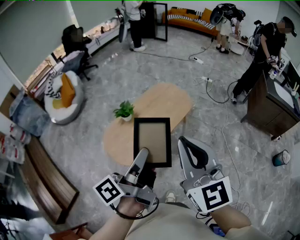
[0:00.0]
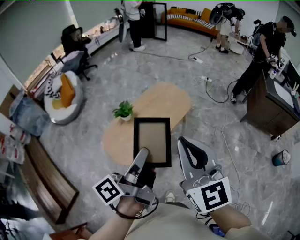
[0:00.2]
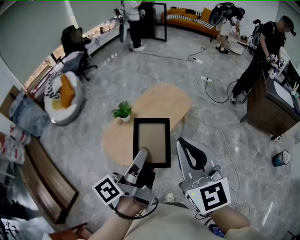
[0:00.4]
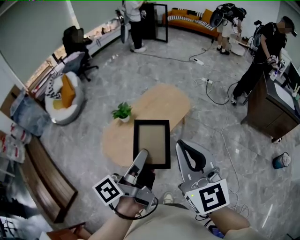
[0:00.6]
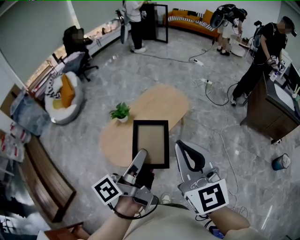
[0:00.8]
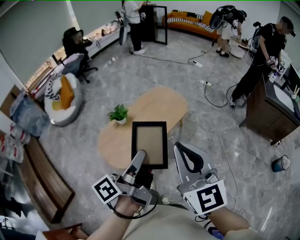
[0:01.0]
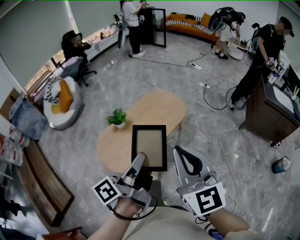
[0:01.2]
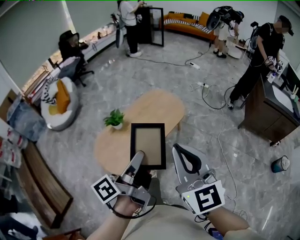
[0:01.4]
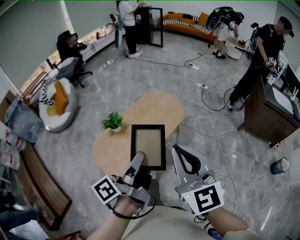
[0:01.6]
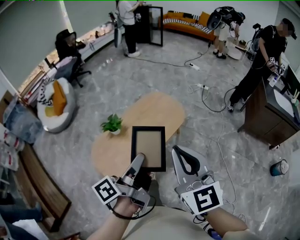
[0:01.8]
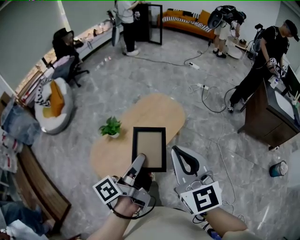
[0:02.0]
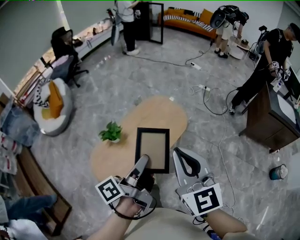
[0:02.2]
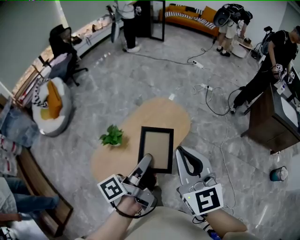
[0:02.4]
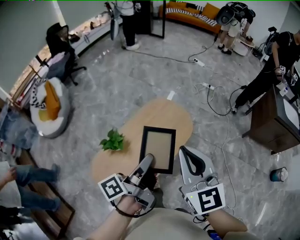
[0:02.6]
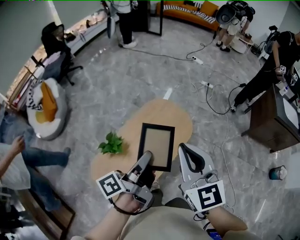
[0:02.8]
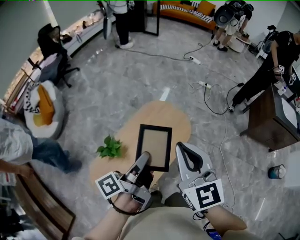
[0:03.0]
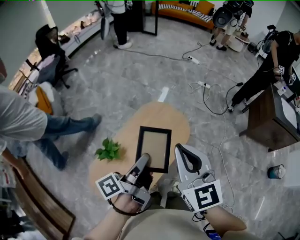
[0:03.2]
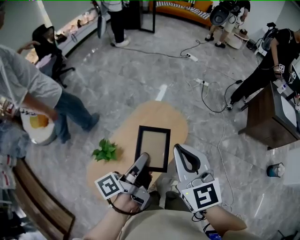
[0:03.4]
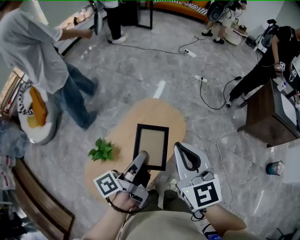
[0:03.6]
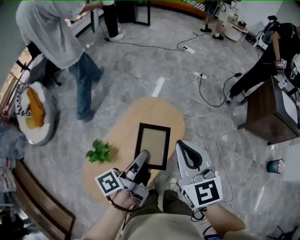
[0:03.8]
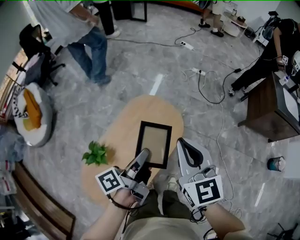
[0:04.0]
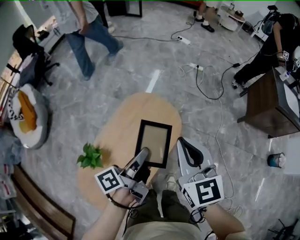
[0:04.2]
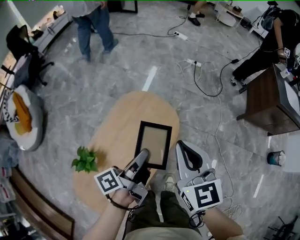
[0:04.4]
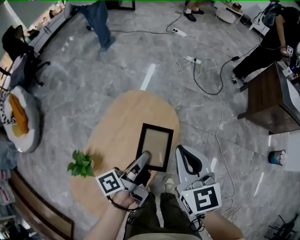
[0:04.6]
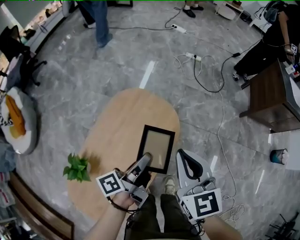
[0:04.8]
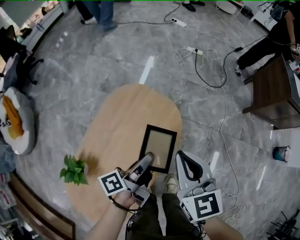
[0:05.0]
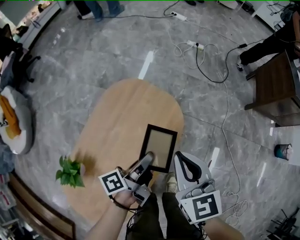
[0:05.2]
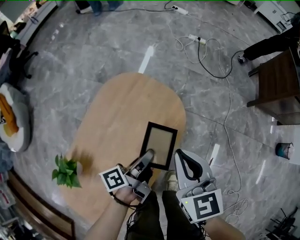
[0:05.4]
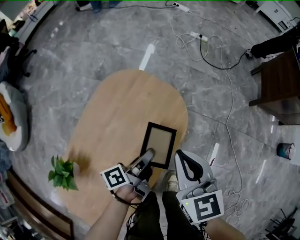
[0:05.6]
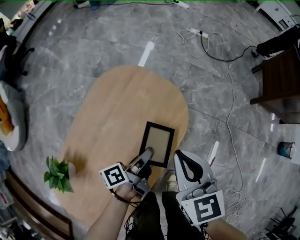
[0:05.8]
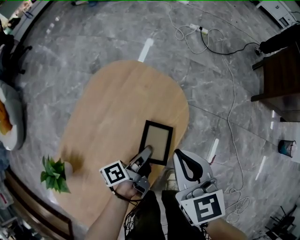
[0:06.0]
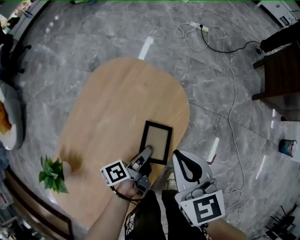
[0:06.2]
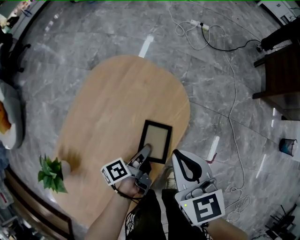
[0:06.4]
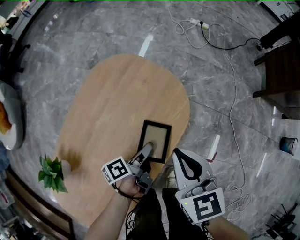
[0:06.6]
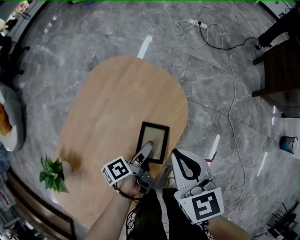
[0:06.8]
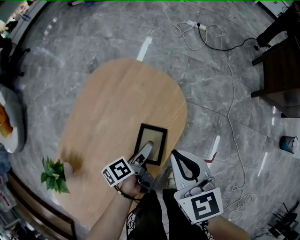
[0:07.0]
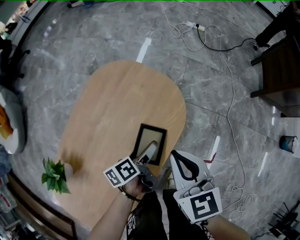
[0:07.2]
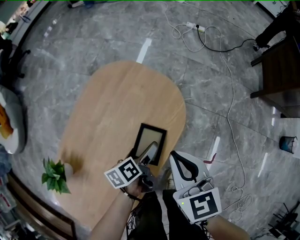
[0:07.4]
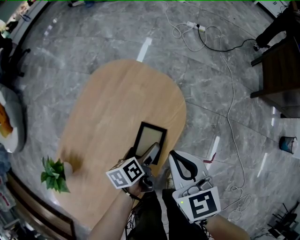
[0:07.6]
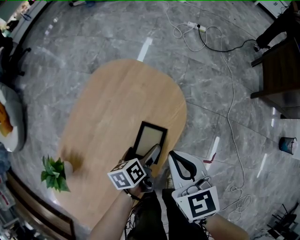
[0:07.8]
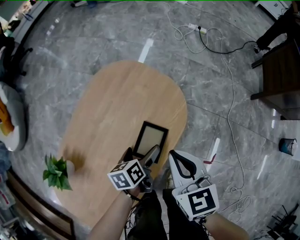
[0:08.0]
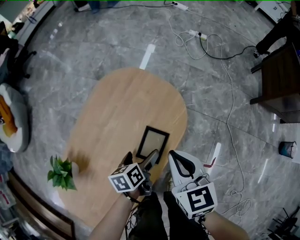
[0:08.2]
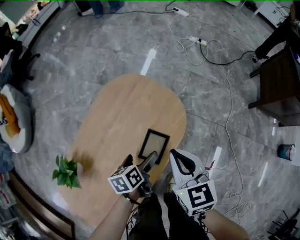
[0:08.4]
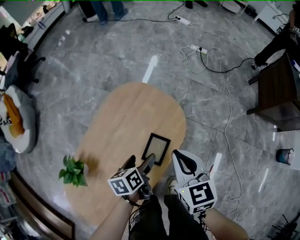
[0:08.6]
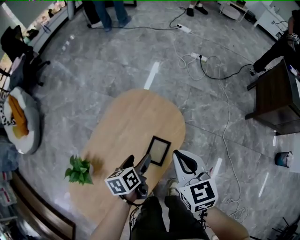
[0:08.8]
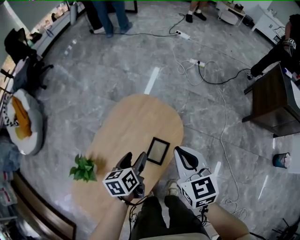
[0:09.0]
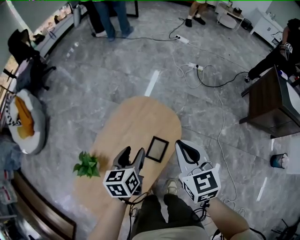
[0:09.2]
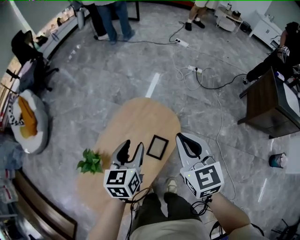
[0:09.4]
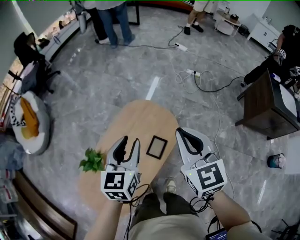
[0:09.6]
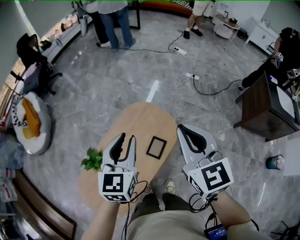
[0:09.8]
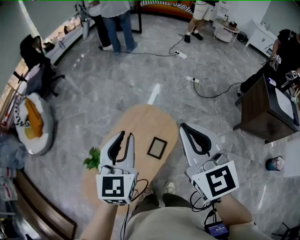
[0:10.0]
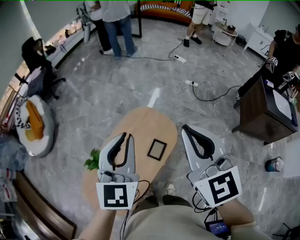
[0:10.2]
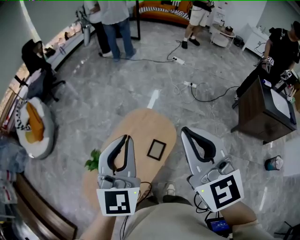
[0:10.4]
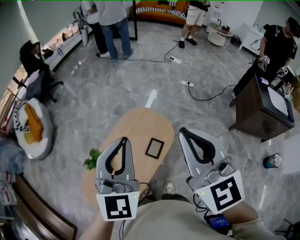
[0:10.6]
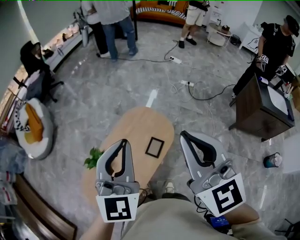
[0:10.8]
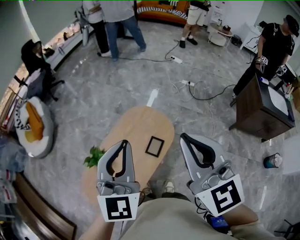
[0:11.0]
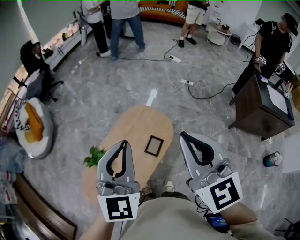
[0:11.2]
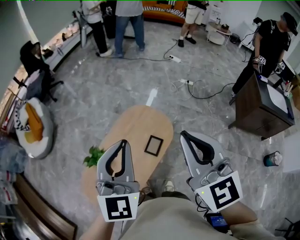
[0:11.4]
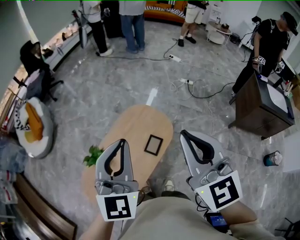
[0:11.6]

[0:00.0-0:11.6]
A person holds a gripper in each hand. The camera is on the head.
0:00.0 to 0:01.4: The grippers both shift to the right by about 5 cm.
0:01.4 to 0:02.8: The grippers both shift forward by some 30 cm.
0:02.8 to 0:04.4: Both grippers travel together forward, downward and to the right, roughly 25 cm.
0:04.4 to 0:05.8: The grippers both shift downward by roughly 30 cm.
0:05.8 to 0:07.2: The left gripper shifts about 5 cm downward, turns by approximately 20 degrees, and opens up.
0:07.2 to 0:08.8: The right gripper heads upward, covering roughly 10 cm. The left gripper heads upward and to the left, covering approximately 20 cm, and rotates some 20 degrees.
0:08.8 to 0:10.2: Both grippers move upward, approximately 40 cm. The left gripper angles its fingers upward, by about 40 degrees, and closes its fingers. The right gripper rotates some 30 degrees.
0:10.2 to 0:11.6: Both grippers travel together backward, about 5 cm.

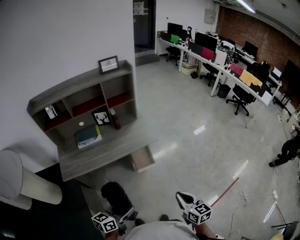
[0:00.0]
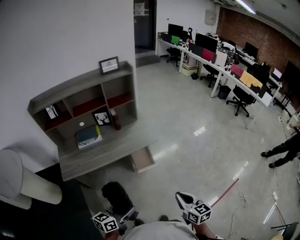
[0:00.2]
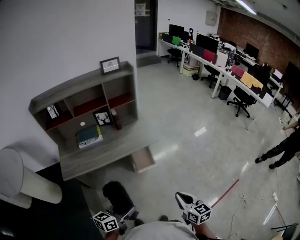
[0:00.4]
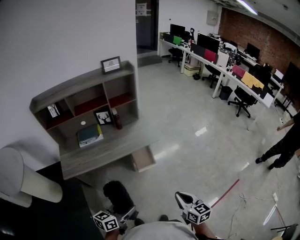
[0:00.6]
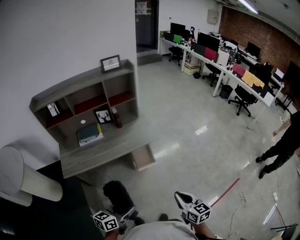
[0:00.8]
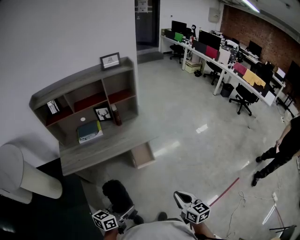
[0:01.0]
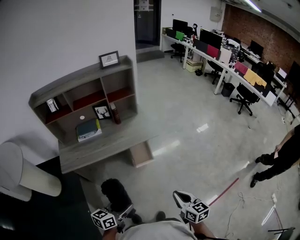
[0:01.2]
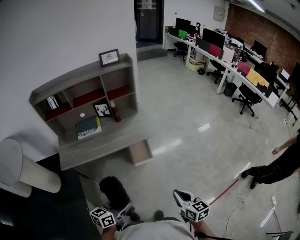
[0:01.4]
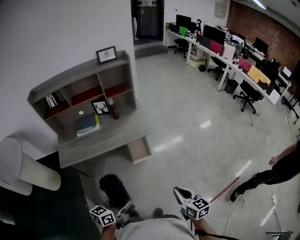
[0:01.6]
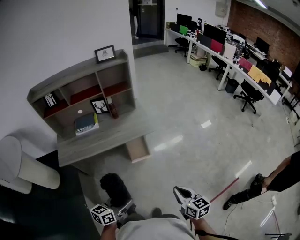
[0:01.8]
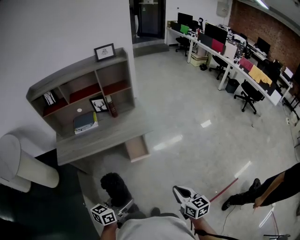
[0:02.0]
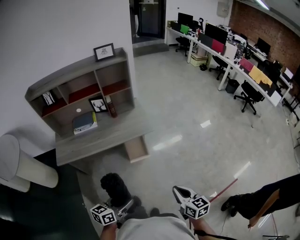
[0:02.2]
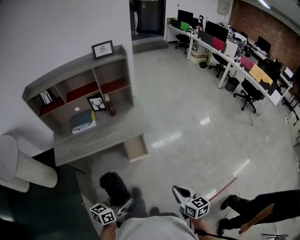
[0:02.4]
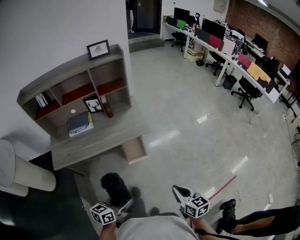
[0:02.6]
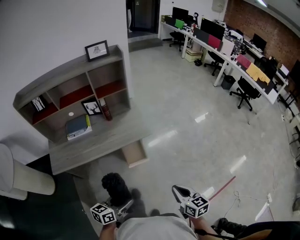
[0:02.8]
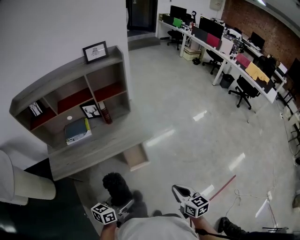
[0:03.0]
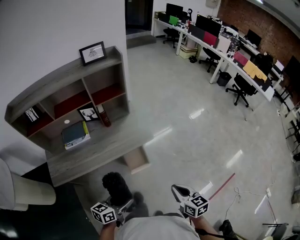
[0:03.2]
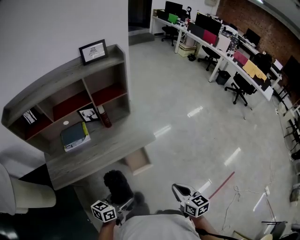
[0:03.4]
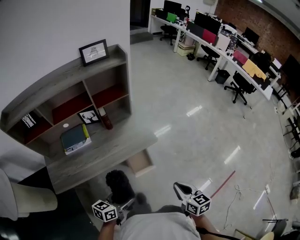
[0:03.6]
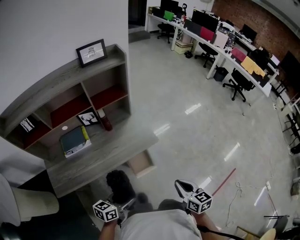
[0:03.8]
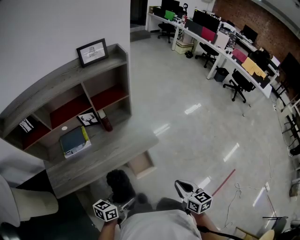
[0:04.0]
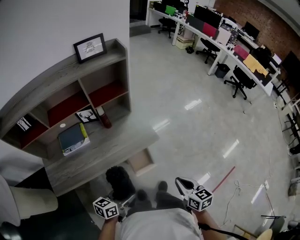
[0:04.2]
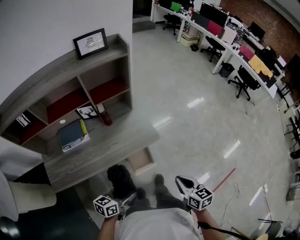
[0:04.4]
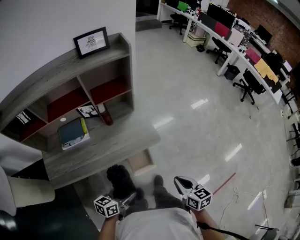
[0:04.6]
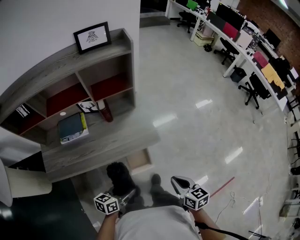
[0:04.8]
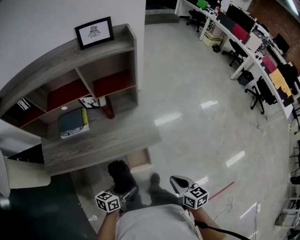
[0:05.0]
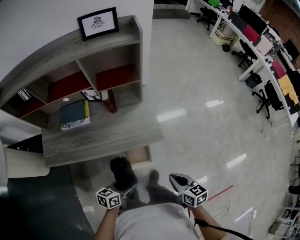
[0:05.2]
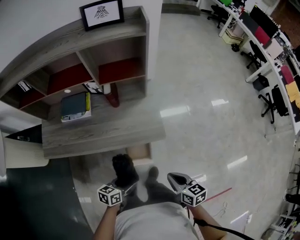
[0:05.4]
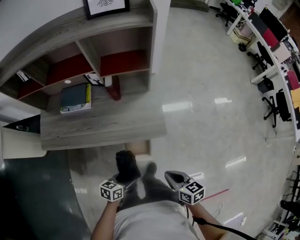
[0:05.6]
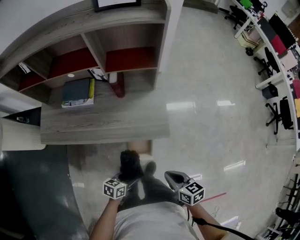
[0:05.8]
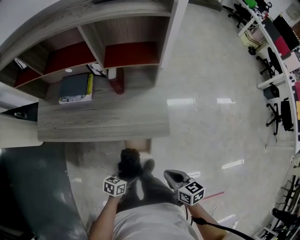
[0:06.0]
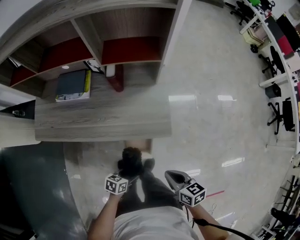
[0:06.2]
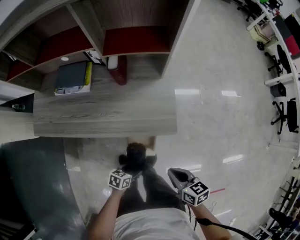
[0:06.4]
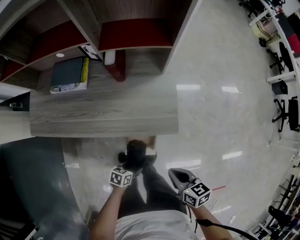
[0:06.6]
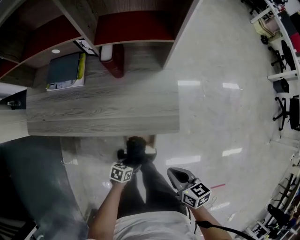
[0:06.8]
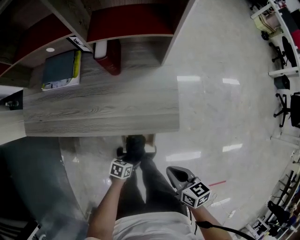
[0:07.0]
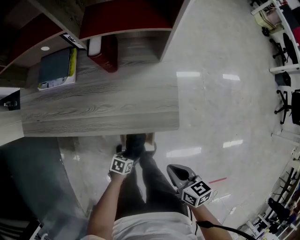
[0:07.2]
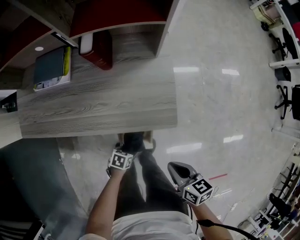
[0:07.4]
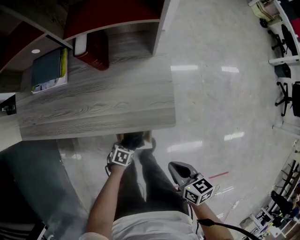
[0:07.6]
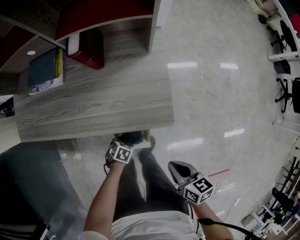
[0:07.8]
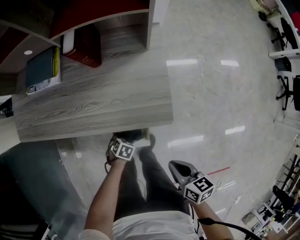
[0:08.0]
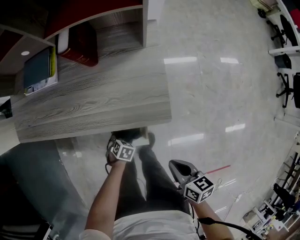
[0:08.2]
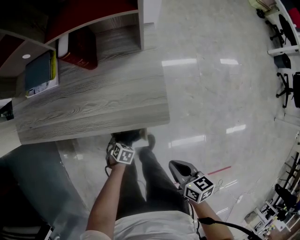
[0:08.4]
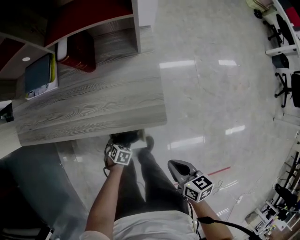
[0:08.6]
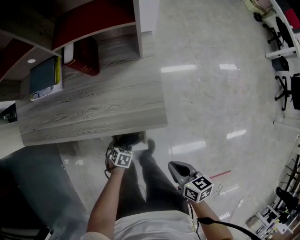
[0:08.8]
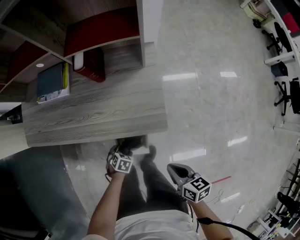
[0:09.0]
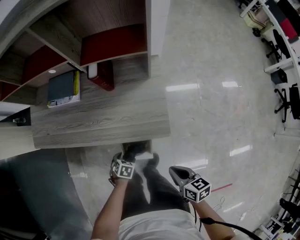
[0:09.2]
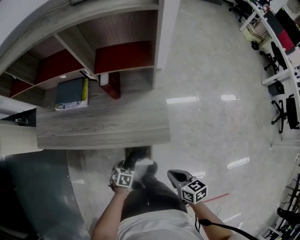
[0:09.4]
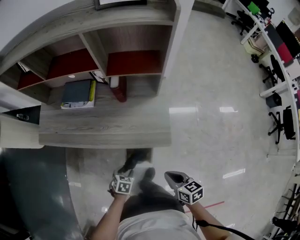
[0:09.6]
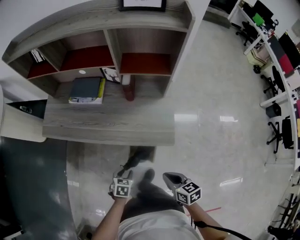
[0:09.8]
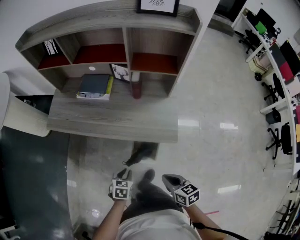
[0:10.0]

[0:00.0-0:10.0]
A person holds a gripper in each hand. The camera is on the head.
0:00.0 to 0:01.4: The right gripper moves about 5 cm. Meanwhile the left gripper travels to the right by some 5 cm.
0:01.4 to 0:02.8: The two grippers go approximately 10 cm forward.
0:02.8 to 0:04.2: The two grippers go some 20 cm forward and to the left.
0:04.2 to 0:05.8: The right gripper ends up some 20 cm from where it was, and changes its angle by about 40 degrees; the left gripper shifts some 20 cm downward, and turns by roughly 30 degrees.
0:05.8 to 0:07.2: The left gripper heads downward, covering about 25 cm, and swivels approximately 20 degrees. The right gripper moves downward, about 15 cm.
0:07.2 to 0:08.6: The right gripper moves about 5 cm. Meanwhile the left gripper shifts by approximately 10 cm, and changes its angle by about 30 degrees.
0:08.6 to 0:10.0: The left gripper goes roughly 30 cm upward, rotates roughly 40 degrees, and closes. Meanwhile the right gripper moves upward, some 15 cm, and rotates some 20 degrees.

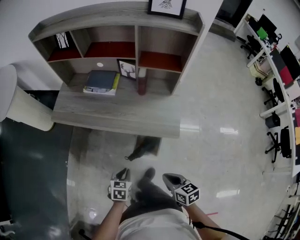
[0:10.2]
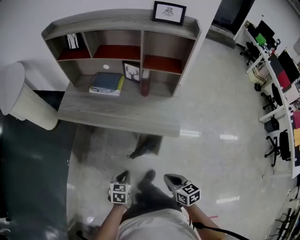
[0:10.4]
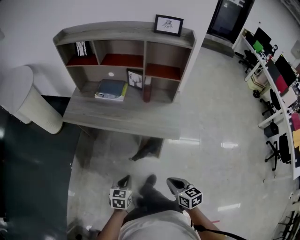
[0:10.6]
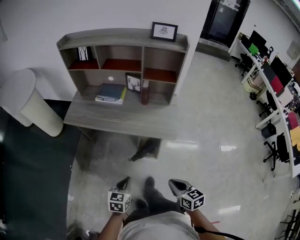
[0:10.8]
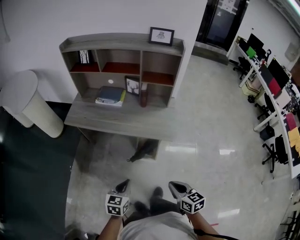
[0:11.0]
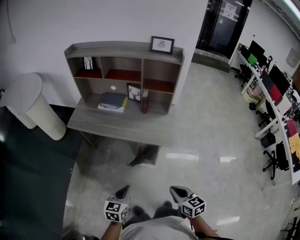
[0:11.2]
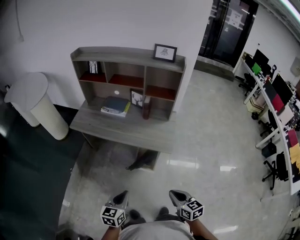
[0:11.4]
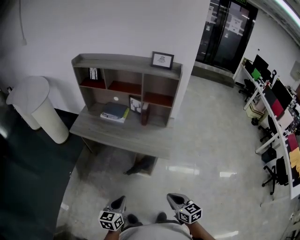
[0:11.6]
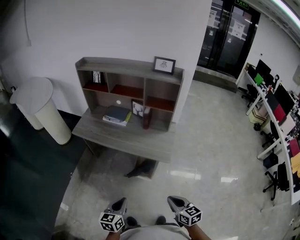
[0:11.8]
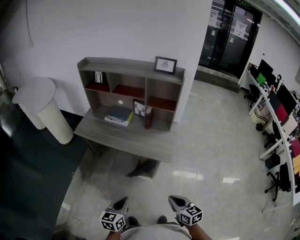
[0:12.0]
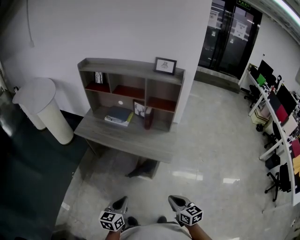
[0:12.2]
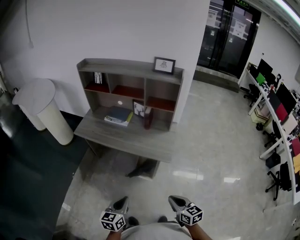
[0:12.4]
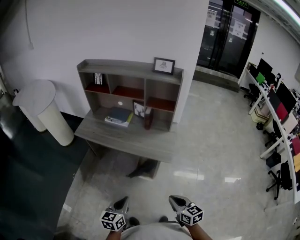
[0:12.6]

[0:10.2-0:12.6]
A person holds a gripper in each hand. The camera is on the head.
0:10.2 to 0:11.4: The right gripper shifts roughly 25 cm backward and upward. Meanwhile the left gripper shifts about 30 cm upward and backward, and changes its angle by approximately 30 degrees.
0:11.4 to 0:12.6: There are only small adjustments of the grippers.
